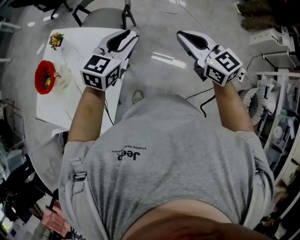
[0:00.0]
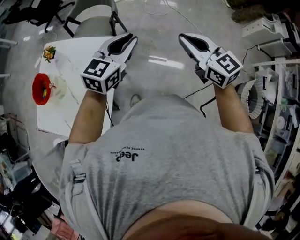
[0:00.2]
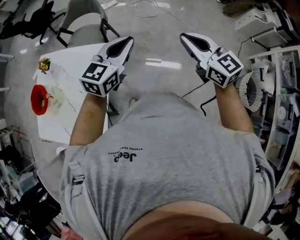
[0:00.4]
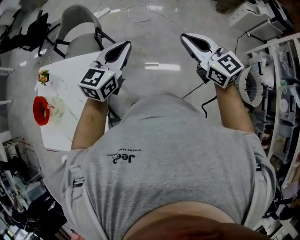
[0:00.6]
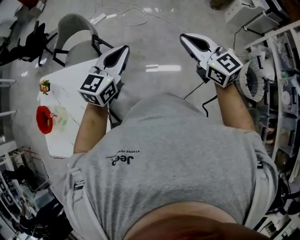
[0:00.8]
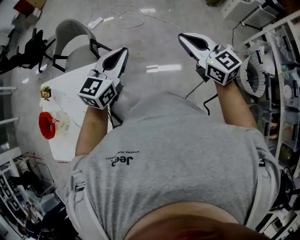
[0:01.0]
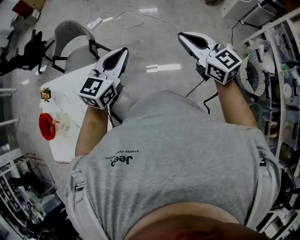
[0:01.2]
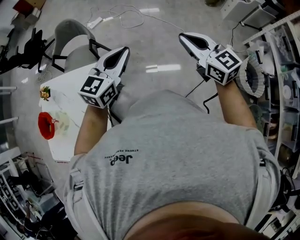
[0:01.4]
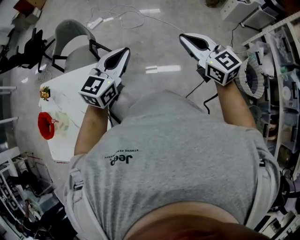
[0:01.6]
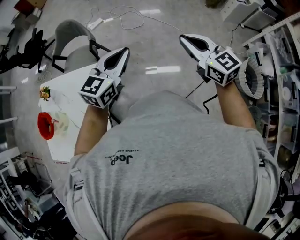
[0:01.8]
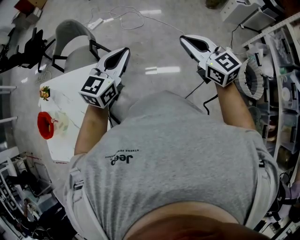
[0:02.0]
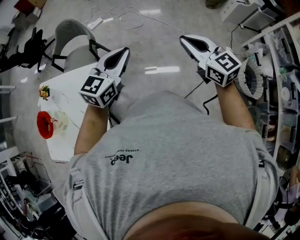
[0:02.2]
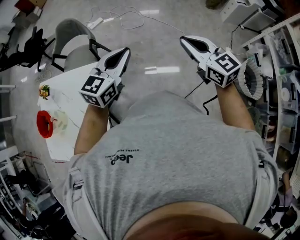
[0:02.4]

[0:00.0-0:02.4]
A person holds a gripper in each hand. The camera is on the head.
0:00.0 to 0:01.2: Both grippers move to the right, approximately 20 cm. The right gripper swivels approximately 20 degrees.
0:01.2 to 0:02.4: Both grippers stay put.

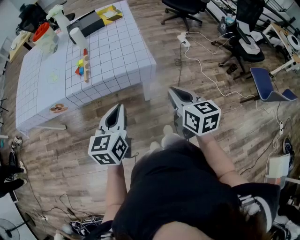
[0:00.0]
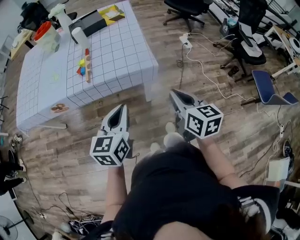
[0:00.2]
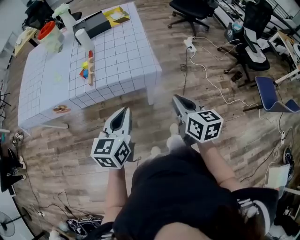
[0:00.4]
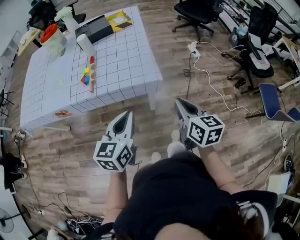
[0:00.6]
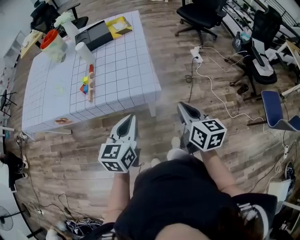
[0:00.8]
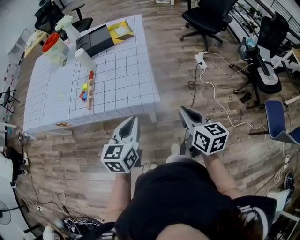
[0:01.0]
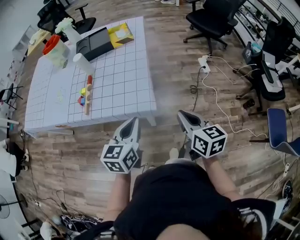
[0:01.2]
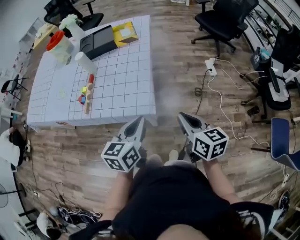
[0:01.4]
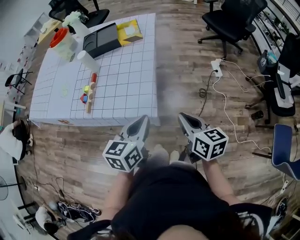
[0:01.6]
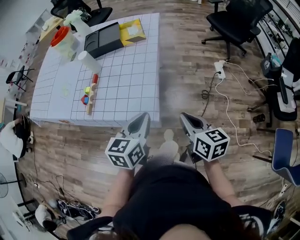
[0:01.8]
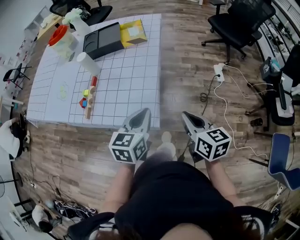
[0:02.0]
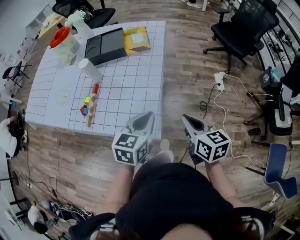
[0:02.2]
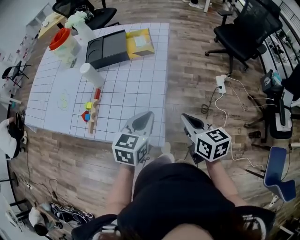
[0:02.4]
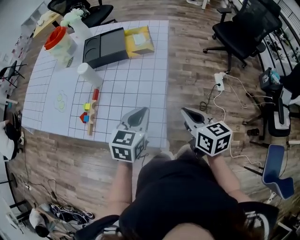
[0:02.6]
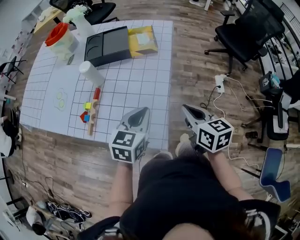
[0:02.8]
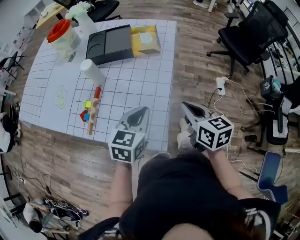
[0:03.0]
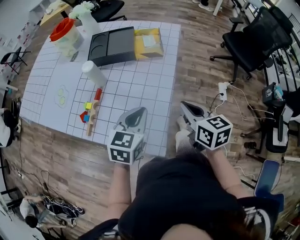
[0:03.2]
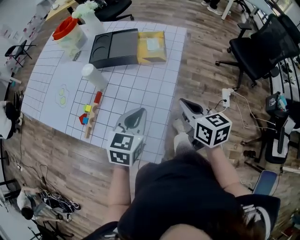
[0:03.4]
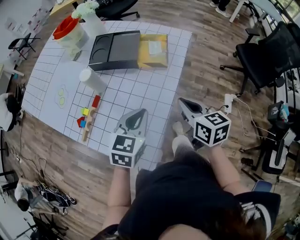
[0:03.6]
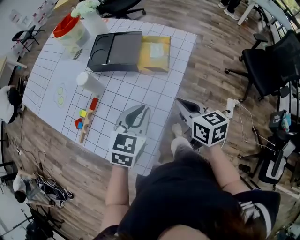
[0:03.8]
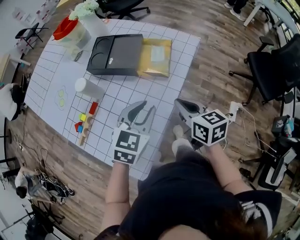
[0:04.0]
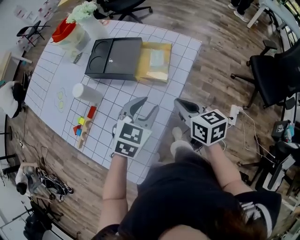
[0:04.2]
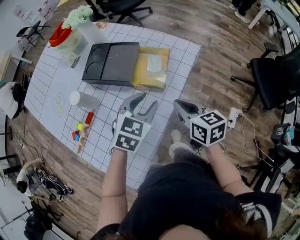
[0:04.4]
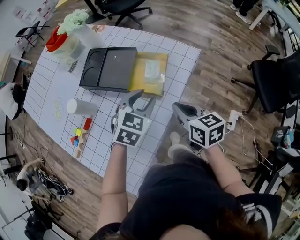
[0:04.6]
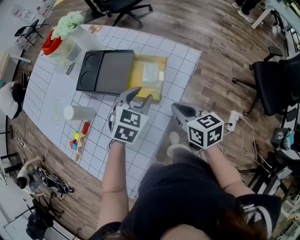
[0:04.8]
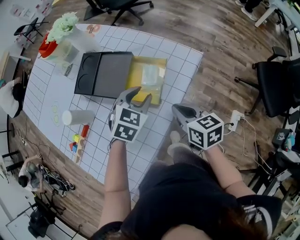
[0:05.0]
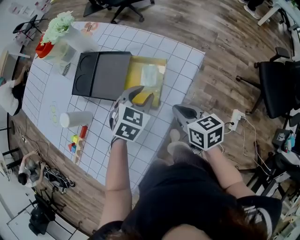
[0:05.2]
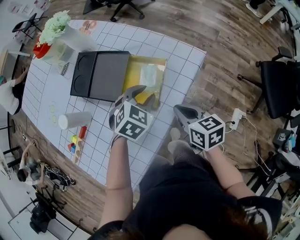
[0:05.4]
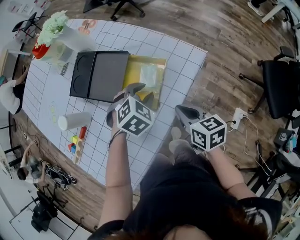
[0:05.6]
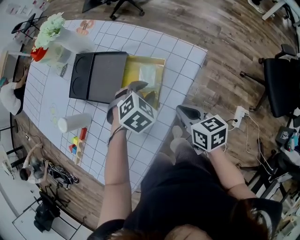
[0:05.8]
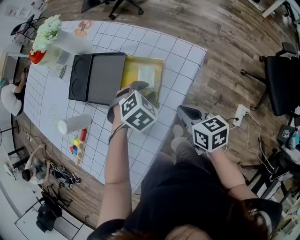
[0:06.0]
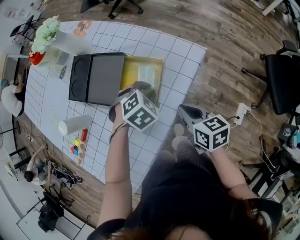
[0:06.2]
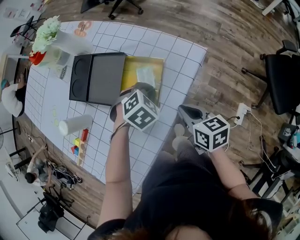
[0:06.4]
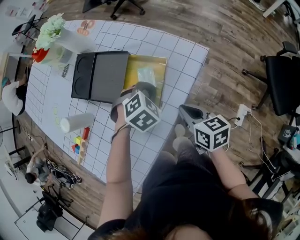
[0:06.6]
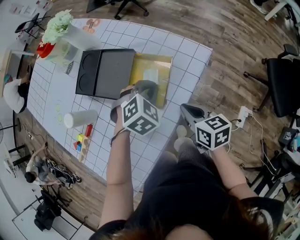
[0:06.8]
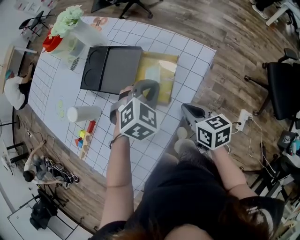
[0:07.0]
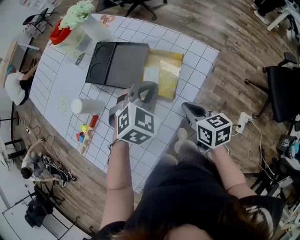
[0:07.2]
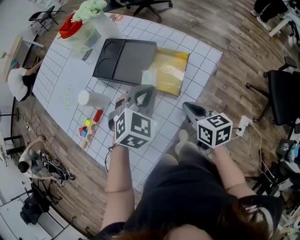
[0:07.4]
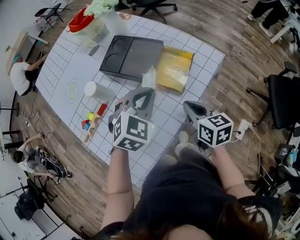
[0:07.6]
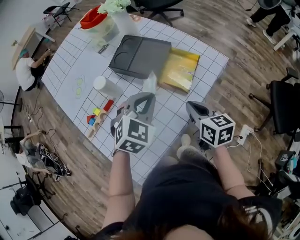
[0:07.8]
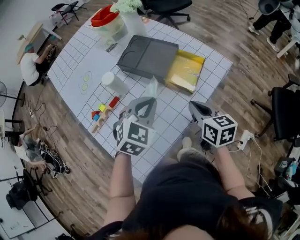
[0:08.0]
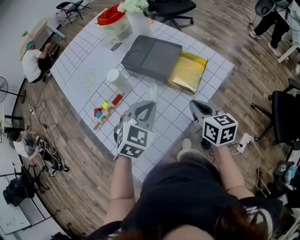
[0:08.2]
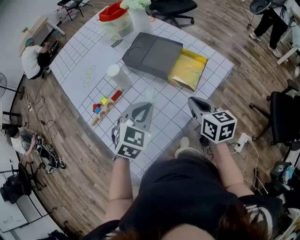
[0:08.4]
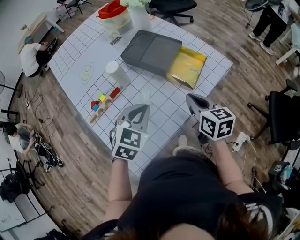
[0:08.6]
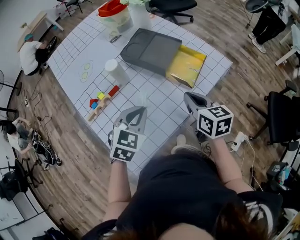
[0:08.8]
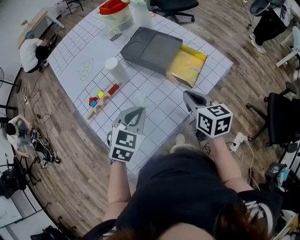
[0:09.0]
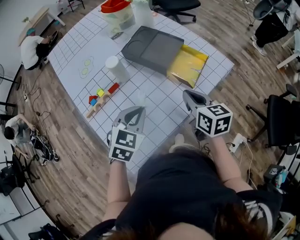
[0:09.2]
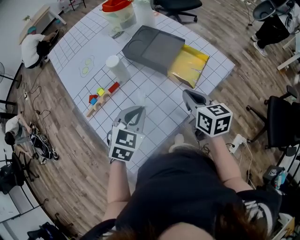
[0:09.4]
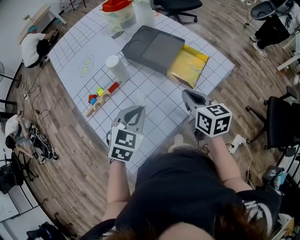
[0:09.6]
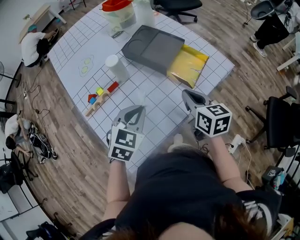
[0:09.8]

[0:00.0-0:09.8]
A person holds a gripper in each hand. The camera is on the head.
0:00.0 to 0:01.4: The two grippers go approximately 25 cm forward and to the right.
0:01.4 to 0:02.8: Both grippers travel together forward, roughly 20 cm.
0:02.8 to 0:04.2: The left gripper is displaced forward and to the right by roughly 25 cm, and opens its fingers. The right gripper goes some 25 cm forward, and swivels about 20 degrees.
0:04.2 to 0:05.6: The left gripper travels forward and downward by roughly 20 cm, and turns by approximately 30 degrees; the right gripper is displaced forward, downward and to the right by some 15 cm.
0:05.6 to 0:07.0: The left gripper heads upward, covering some 5 cm, and closes up.
0:07.0 to 0:08.4: The right gripper moves to the left, upward and backward, roughly 15 cm, while the left gripper is displaced to the left and backward by some 25 cm, and rotates roughly 30 degrees.
0:08.4 to 0:09.8: The grippers make only small movements.

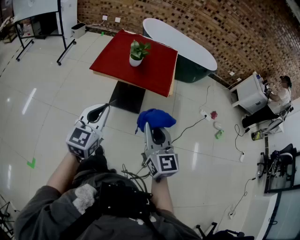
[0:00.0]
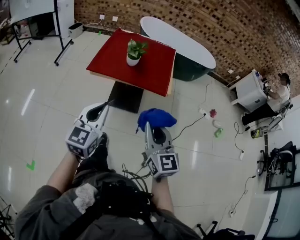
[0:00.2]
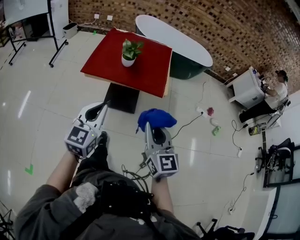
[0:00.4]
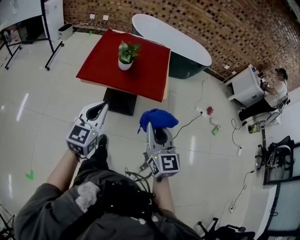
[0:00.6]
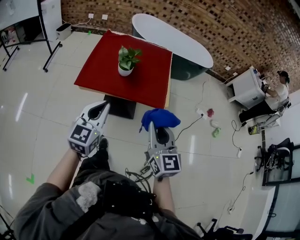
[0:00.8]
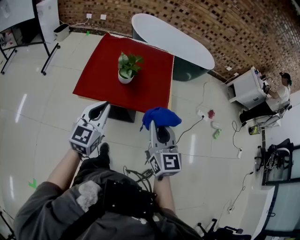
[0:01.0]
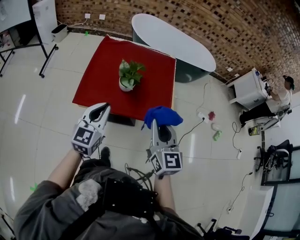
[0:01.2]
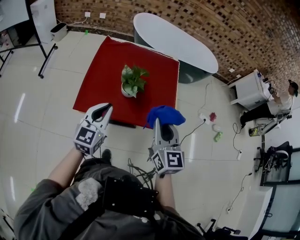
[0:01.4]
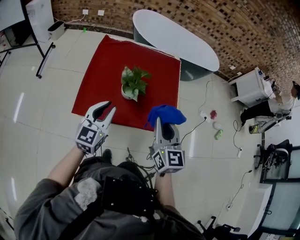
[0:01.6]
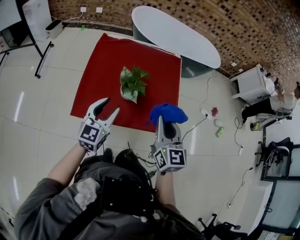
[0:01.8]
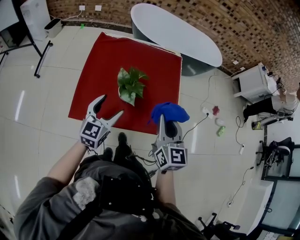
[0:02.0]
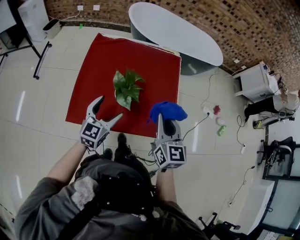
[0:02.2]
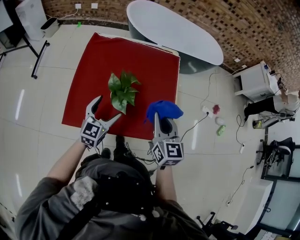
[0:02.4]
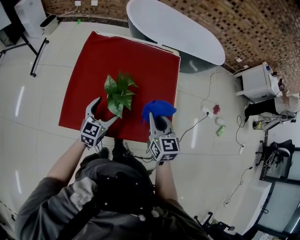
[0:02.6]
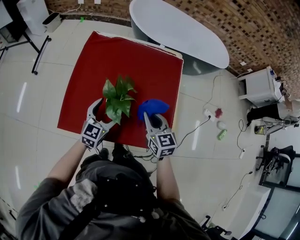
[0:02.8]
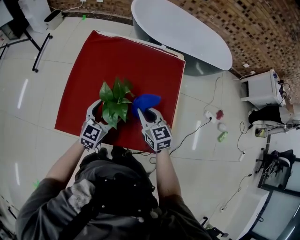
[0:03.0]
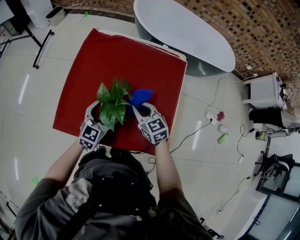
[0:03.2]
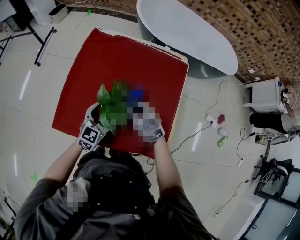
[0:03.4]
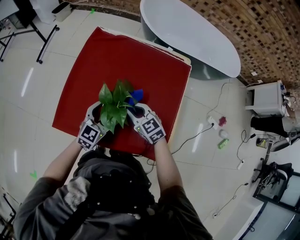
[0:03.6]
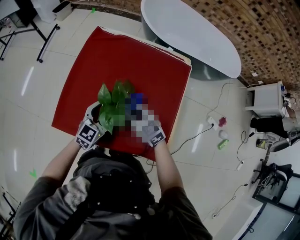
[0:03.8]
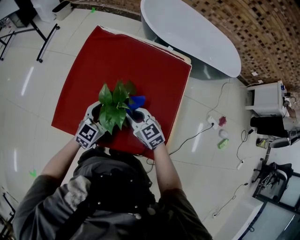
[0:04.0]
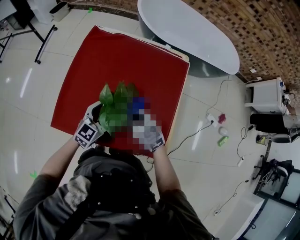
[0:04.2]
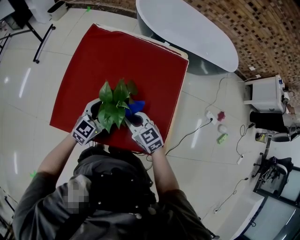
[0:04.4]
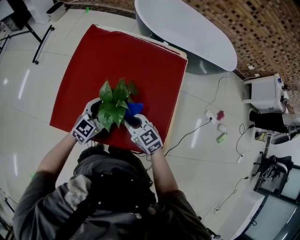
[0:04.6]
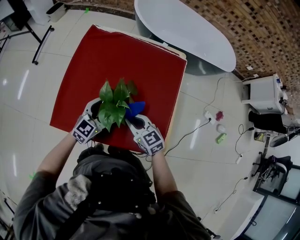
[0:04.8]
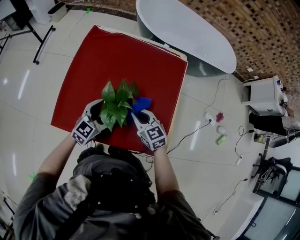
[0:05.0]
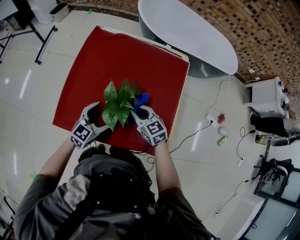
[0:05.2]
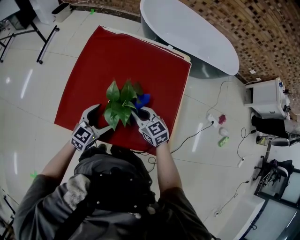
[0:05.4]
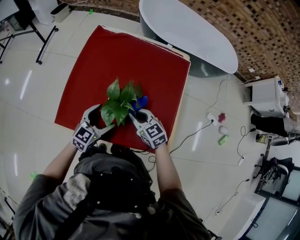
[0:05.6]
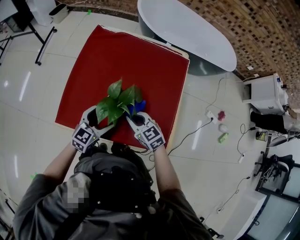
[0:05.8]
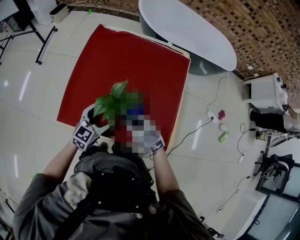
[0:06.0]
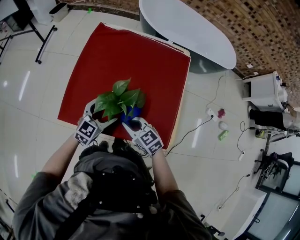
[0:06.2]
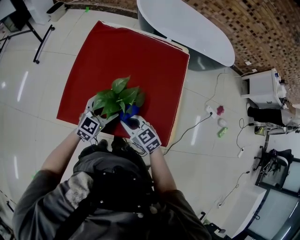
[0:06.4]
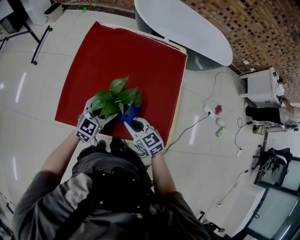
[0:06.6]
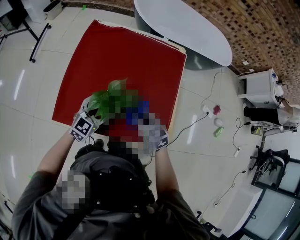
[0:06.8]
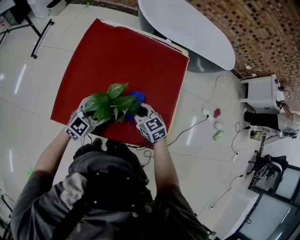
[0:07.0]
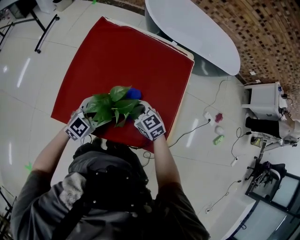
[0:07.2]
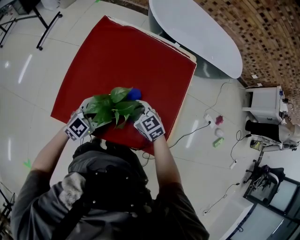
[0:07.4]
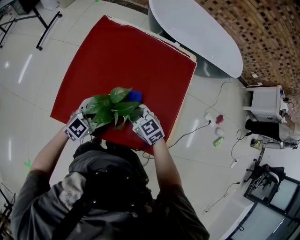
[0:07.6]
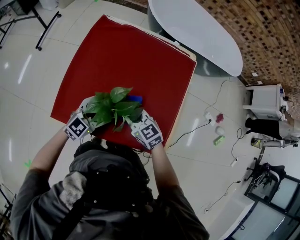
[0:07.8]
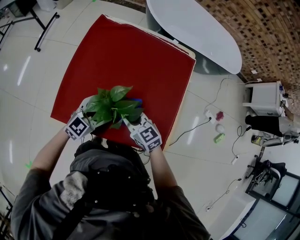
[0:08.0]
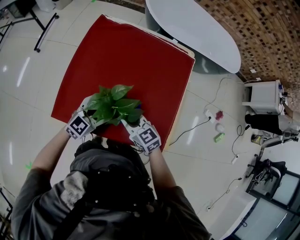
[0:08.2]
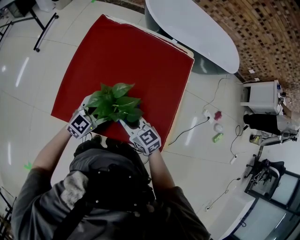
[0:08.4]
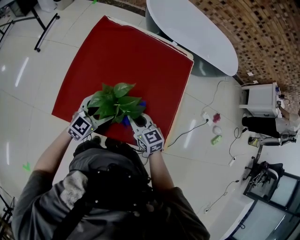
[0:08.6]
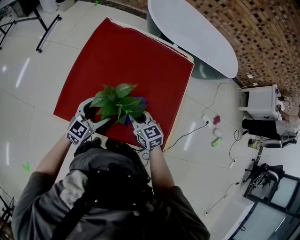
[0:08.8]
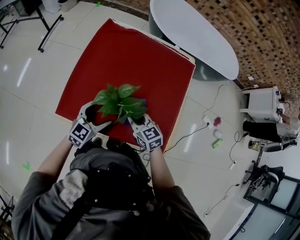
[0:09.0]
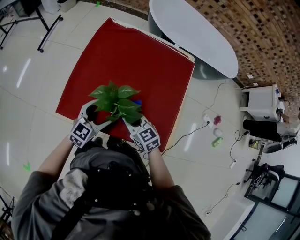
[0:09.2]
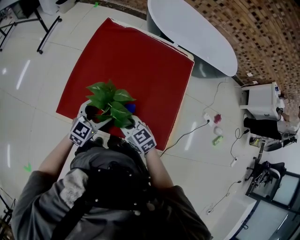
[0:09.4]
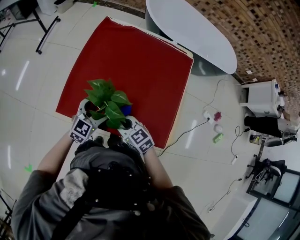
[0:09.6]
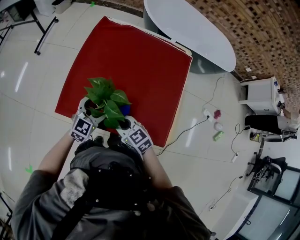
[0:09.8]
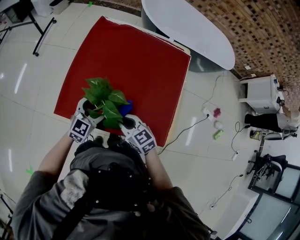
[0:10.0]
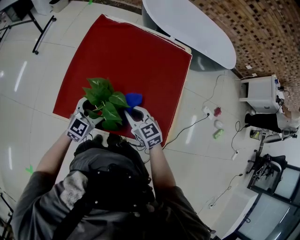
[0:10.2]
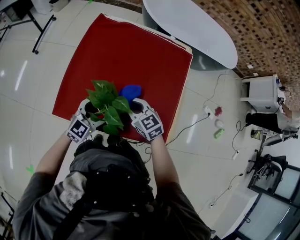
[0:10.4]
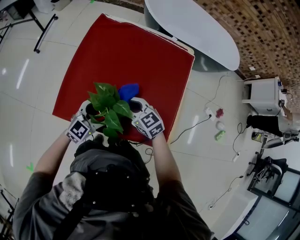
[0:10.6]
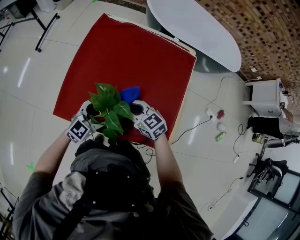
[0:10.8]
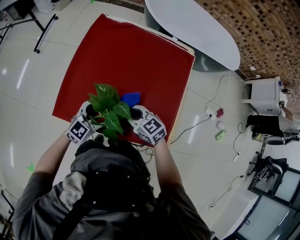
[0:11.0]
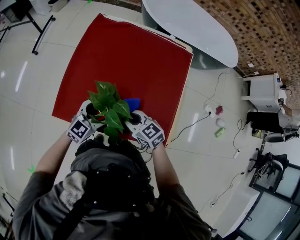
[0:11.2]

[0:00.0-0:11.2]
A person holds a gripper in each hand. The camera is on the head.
0:00.0 to 0:01.6: The pair of grippers is taken forward, about 50 cm.
0:01.6 to 0:03.2: The left gripper moves forward, downward and to the right, approximately 30 cm, and opens its fingers; the right gripper travels forward and downward by approximately 35 cm, and changes its angle by some 40 degrees.
0:03.2 to 0:04.8: The right gripper goes some 5 cm backward.
0:04.8 to 0:06.4: The right gripper shifts about 10 cm to the left and backward. The left gripper goes roughly 5 cm to the left.
0:06.4 to 0:08.0: The right gripper moves forward, approximately 5 cm.
0:08.0 to 0:09.6: The left gripper changes place by about 5 cm; the right gripper heads backward and to the left, covering roughly 10 cm.
0:09.6 to 0:11.2: The right gripper travels forward and back again, some 10 cm each way.
